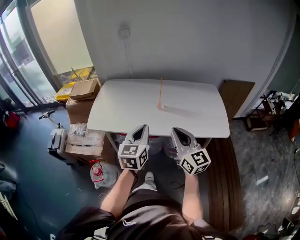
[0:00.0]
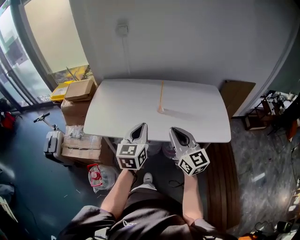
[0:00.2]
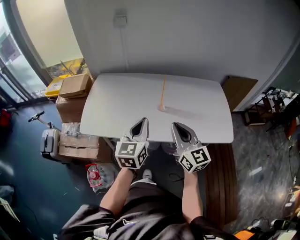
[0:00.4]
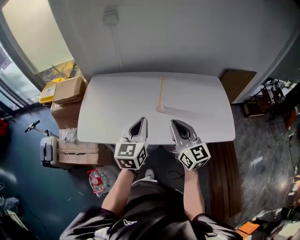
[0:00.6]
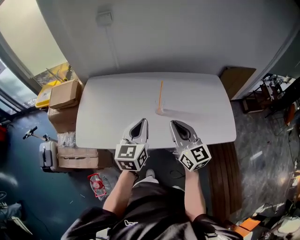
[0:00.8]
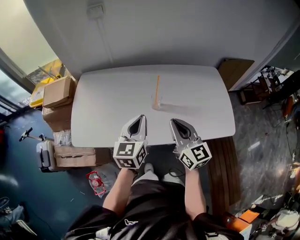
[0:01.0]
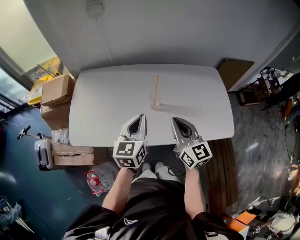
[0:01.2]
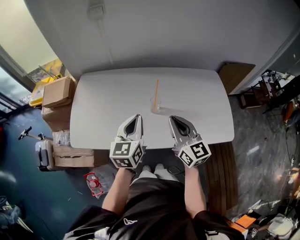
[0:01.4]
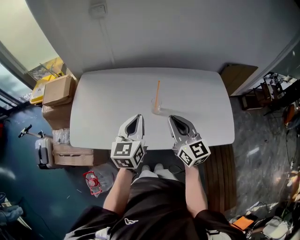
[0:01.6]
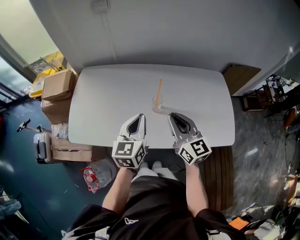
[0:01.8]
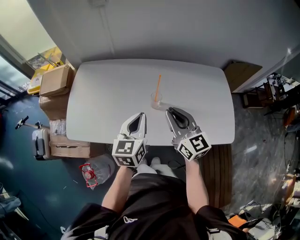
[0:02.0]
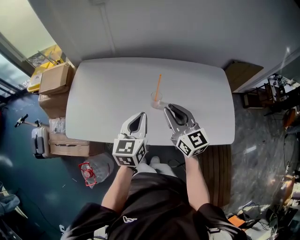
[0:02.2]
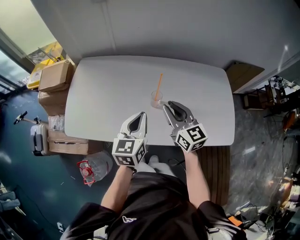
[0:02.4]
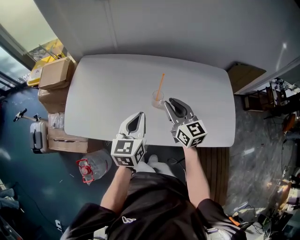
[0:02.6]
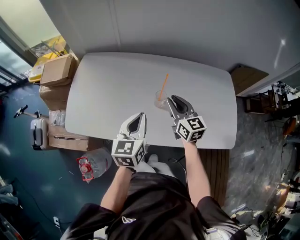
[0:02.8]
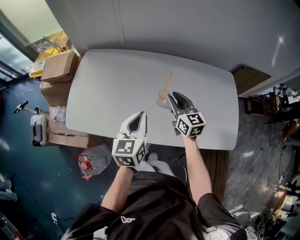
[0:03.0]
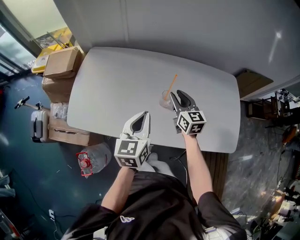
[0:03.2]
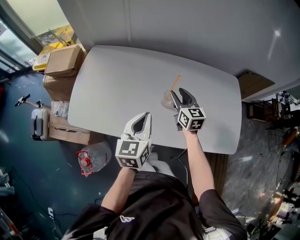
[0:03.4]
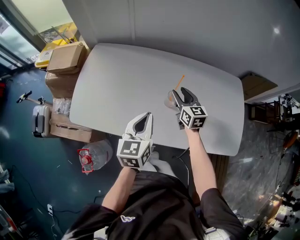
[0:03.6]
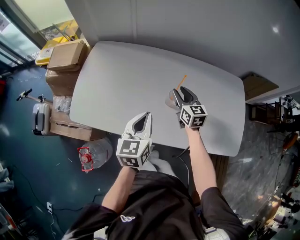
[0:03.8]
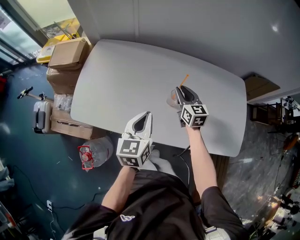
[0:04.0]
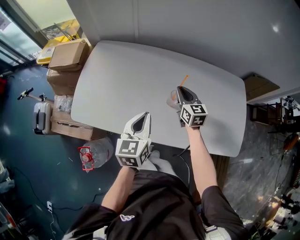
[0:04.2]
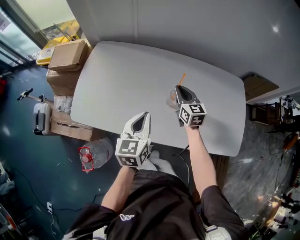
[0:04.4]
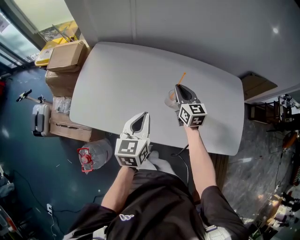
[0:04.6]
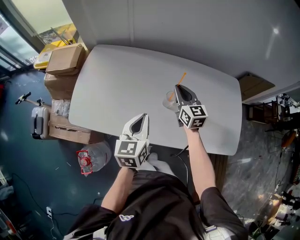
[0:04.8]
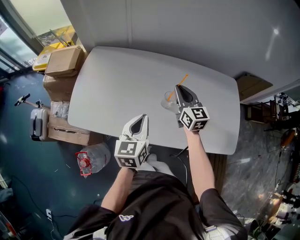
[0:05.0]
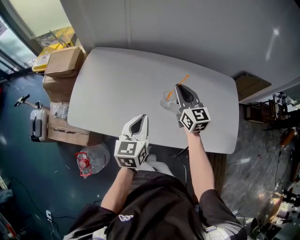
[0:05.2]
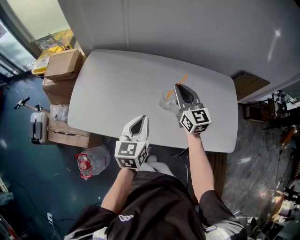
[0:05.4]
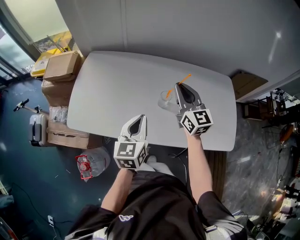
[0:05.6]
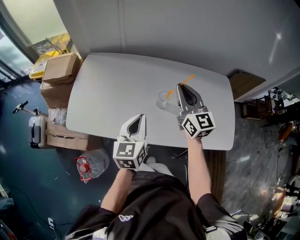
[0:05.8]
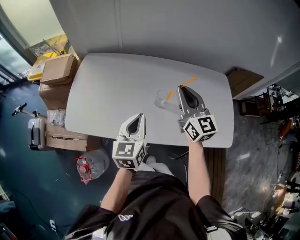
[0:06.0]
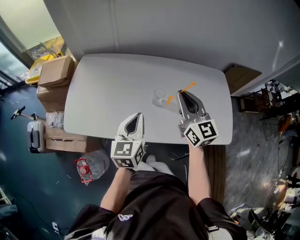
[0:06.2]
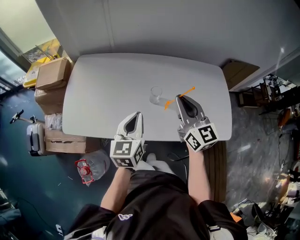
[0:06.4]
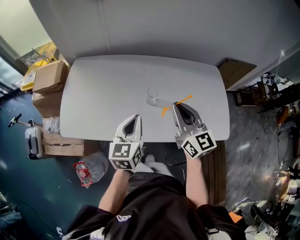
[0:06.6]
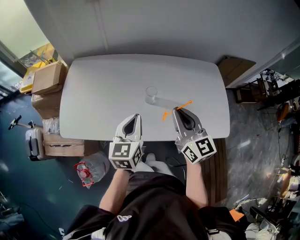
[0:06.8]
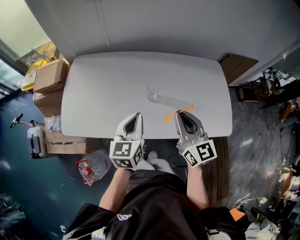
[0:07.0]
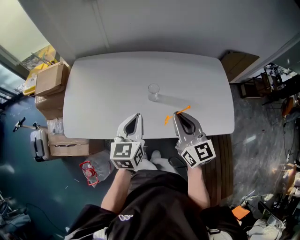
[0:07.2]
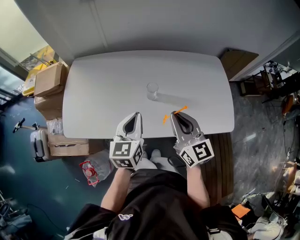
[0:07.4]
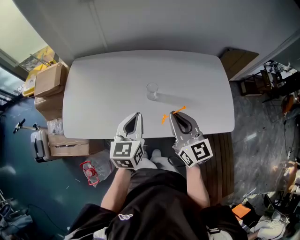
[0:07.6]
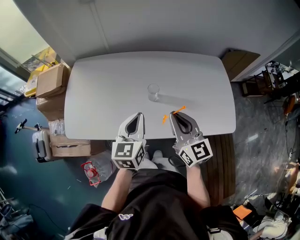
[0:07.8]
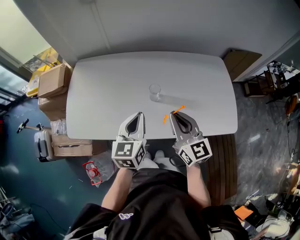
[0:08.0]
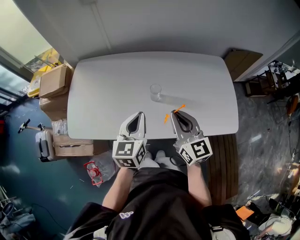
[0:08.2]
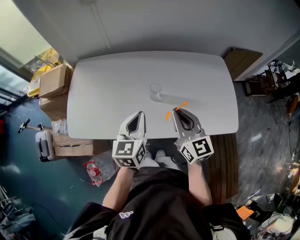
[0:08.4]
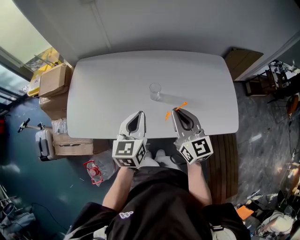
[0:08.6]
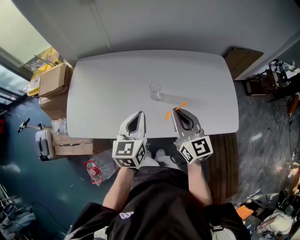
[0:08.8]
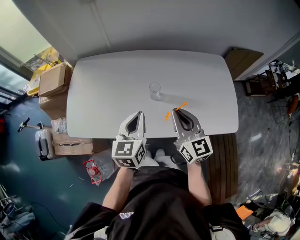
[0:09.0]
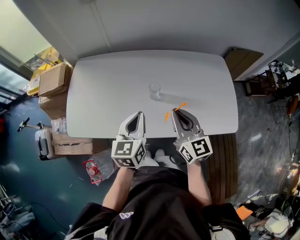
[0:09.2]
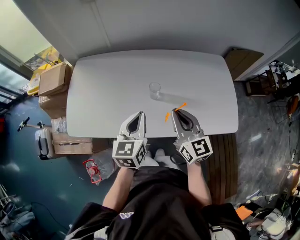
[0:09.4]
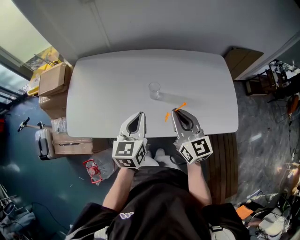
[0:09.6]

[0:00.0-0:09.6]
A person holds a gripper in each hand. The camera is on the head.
0.0 to 1.6 s: Both grippers travel together forward, about 25 cm.
1.6 to 3.2 s: The right gripper heads forward and downward, covering some 20 cm, and opens up.
3.2 to 4.8 s: The right gripper closes up.
4.8 to 6.4 s: The right gripper heads backward and upward, covering roughly 20 cm.
6.4 to 8.0 s: The right gripper travels backward by some 5 cm.
8.0 to 9.6 s: The two grippers keep their place.

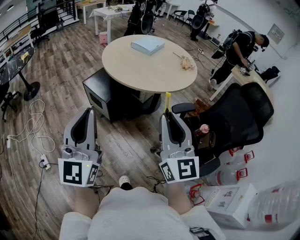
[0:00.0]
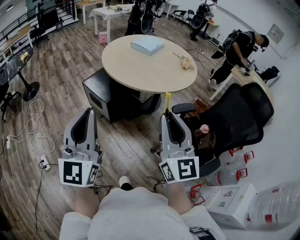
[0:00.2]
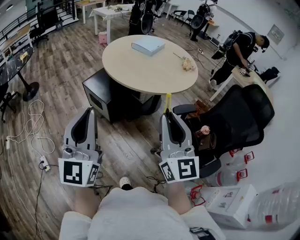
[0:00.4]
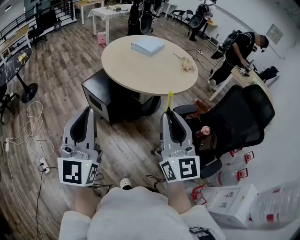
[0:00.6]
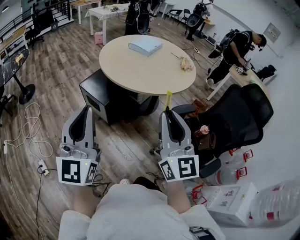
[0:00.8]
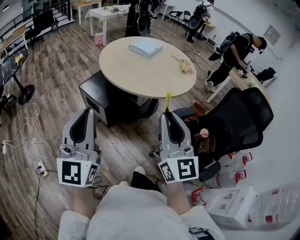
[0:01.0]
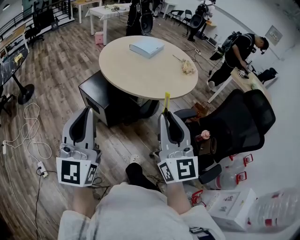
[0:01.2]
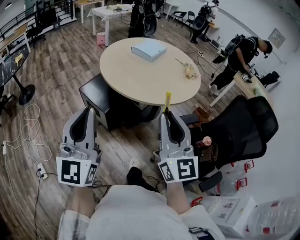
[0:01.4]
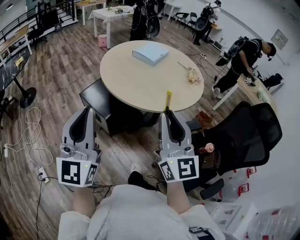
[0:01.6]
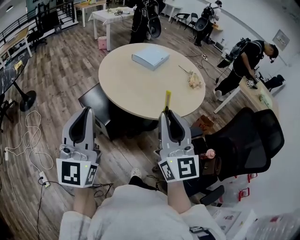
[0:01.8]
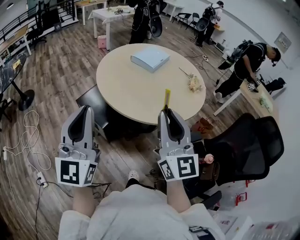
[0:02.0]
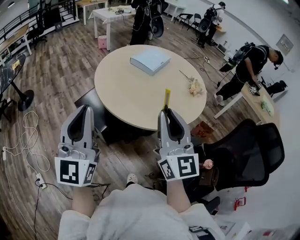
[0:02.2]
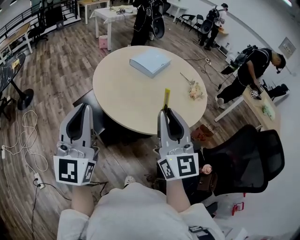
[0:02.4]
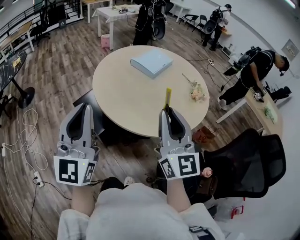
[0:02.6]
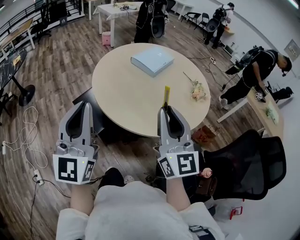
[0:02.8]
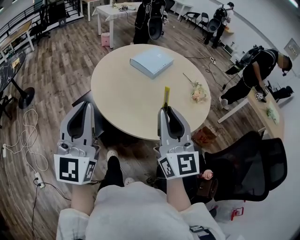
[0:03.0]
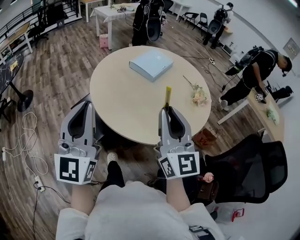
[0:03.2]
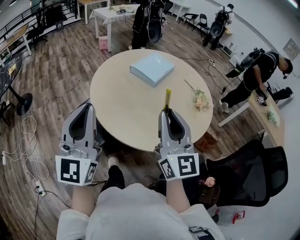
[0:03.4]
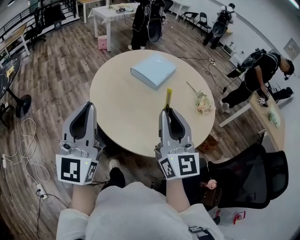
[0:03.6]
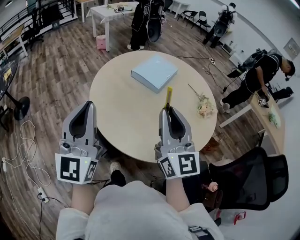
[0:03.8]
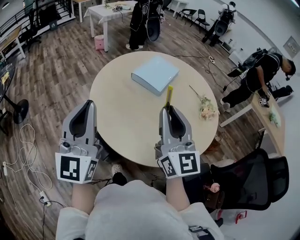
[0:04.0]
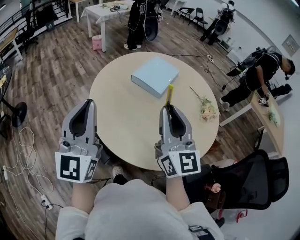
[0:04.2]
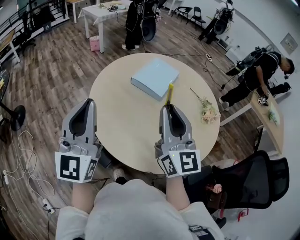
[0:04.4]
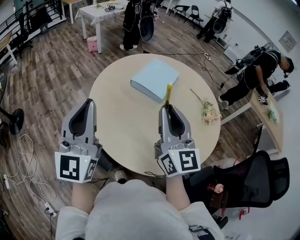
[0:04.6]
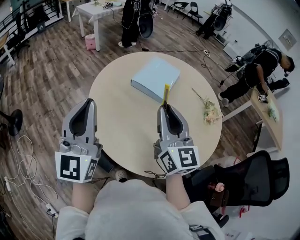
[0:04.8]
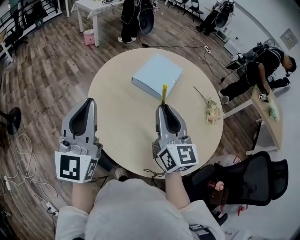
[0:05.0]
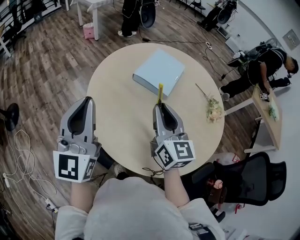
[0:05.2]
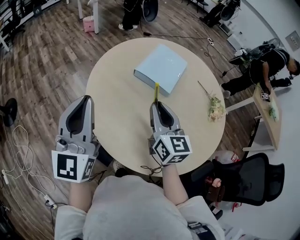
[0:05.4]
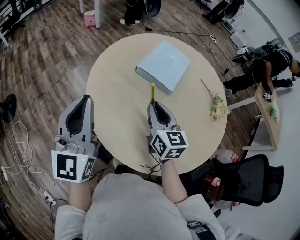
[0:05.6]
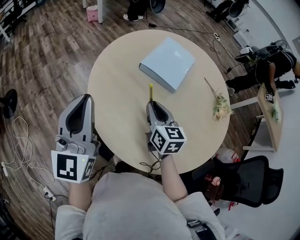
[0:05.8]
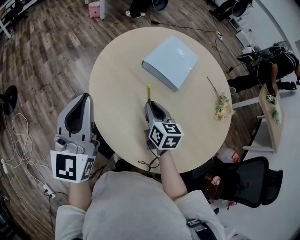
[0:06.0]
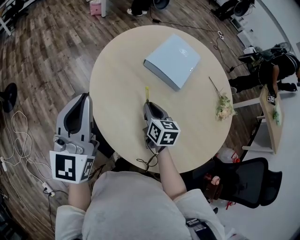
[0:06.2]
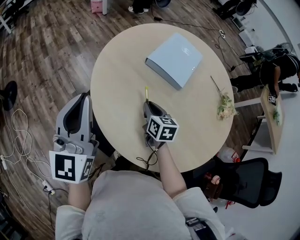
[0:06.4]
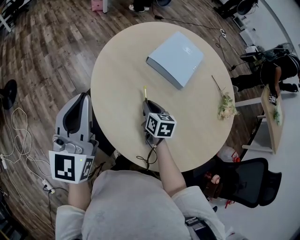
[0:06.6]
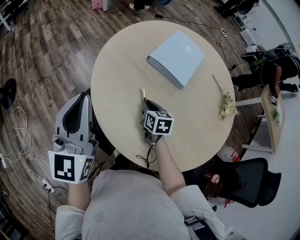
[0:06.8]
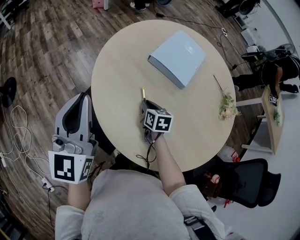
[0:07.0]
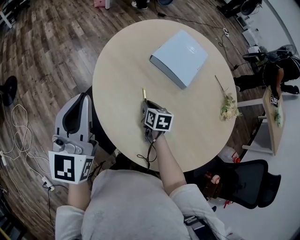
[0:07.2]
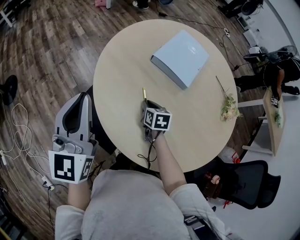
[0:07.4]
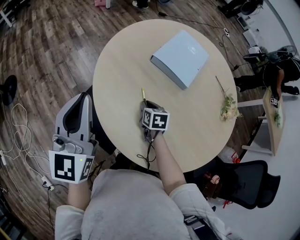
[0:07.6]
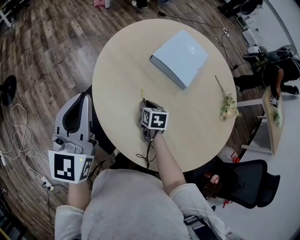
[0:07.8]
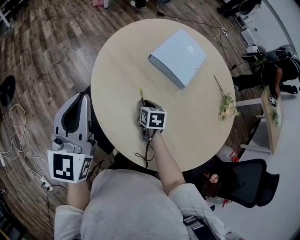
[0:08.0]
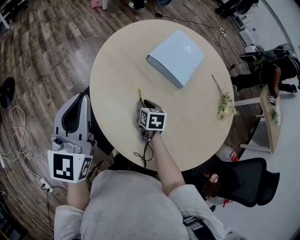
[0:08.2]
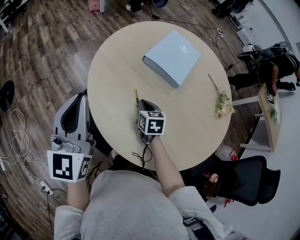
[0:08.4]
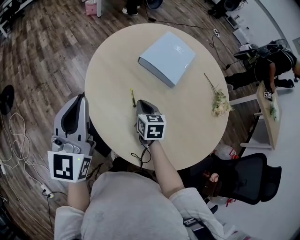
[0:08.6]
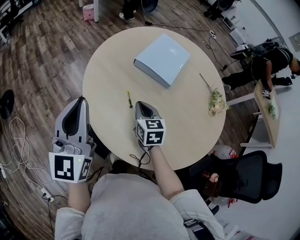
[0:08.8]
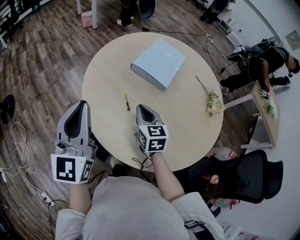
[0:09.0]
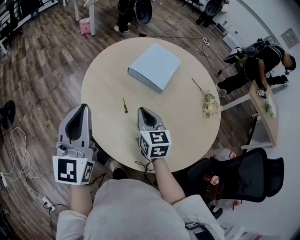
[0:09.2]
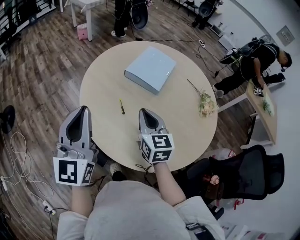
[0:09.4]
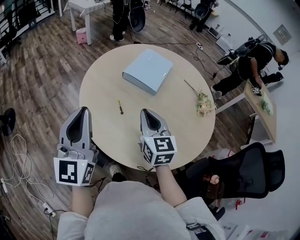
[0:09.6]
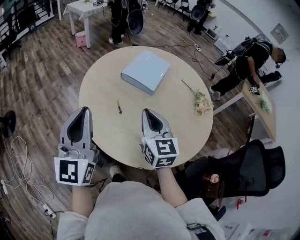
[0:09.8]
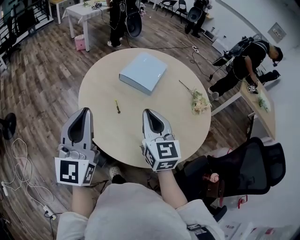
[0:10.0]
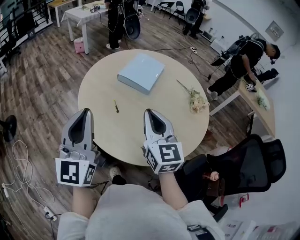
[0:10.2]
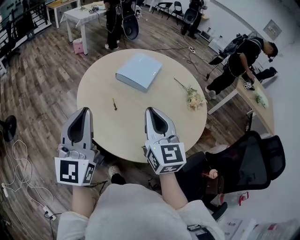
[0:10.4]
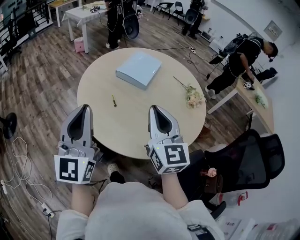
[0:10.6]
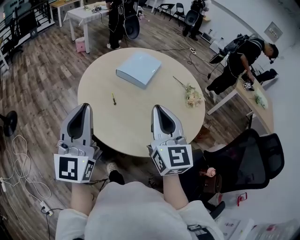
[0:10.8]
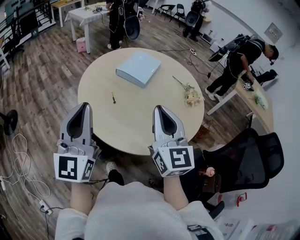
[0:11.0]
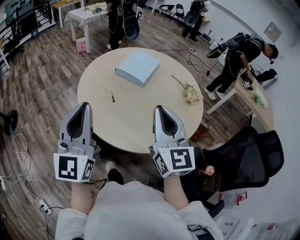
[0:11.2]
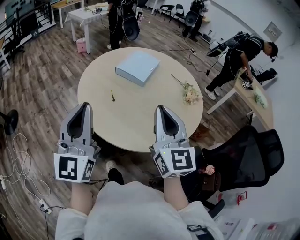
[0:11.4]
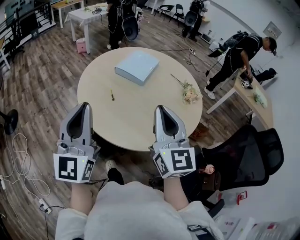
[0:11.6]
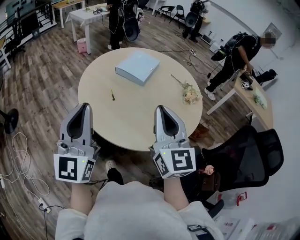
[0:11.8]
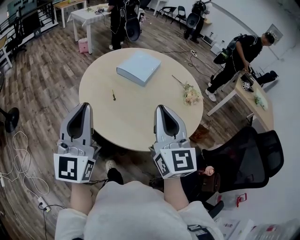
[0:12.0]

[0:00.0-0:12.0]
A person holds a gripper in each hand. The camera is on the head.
0.0 to 1.6 s: The grippers both shift forward by some 20 cm.
1.6 to 3.0 s: The grippers both shift forward by roughly 25 cm.
3.0 to 4.4 s: Both grippers travel together forward, approximately 25 cm.
4.4 to 6.0 s: The left gripper travels forward, downward and to the left by roughly 20 cm. Meanwhile the right gripper moves downward and forward, some 30 cm, and angles its fingers downward, by roughly 40 degrees.
6.0 to 7.6 s: The left gripper ends up approximately 5 cm from where it was; the right gripper goes about 15 cm downward, and turns by roughly 20 degrees.
7.6 to 9.0 s: The left gripper shifts some 10 cm backward and to the right; the right gripper goes about 15 cm upward, and rotates about 30 degrees.
9.0 to 10.4 s: The left gripper moves backward, to the right and upward, approximately 15 cm; the right gripper is displaced upward, backward and to the right by about 30 cm, and rotates approximately 30 degrees.
10.4 to 12.0 s: The right gripper travels backward, upward and to the right by some 15 cm. Meanwhile the left gripper goes approximately 10 cm backward.

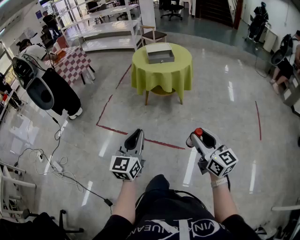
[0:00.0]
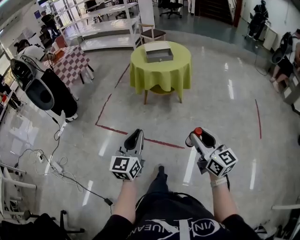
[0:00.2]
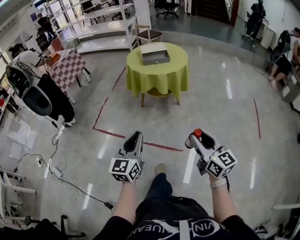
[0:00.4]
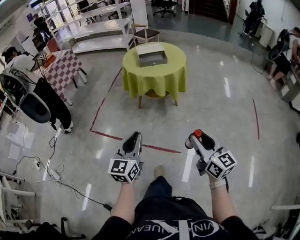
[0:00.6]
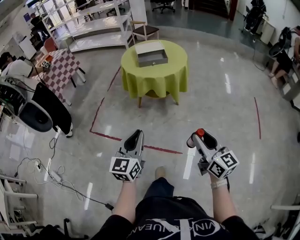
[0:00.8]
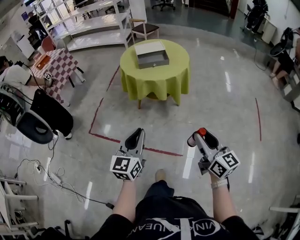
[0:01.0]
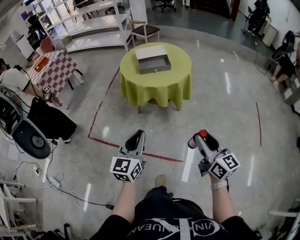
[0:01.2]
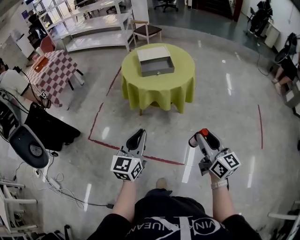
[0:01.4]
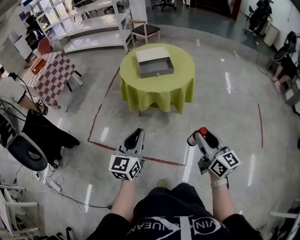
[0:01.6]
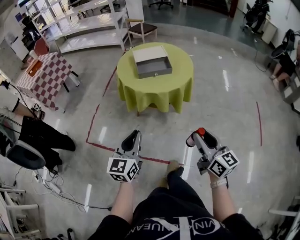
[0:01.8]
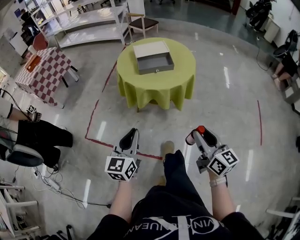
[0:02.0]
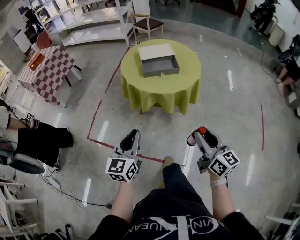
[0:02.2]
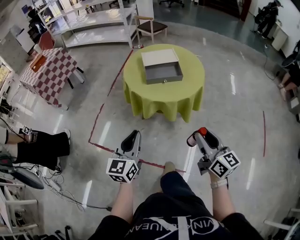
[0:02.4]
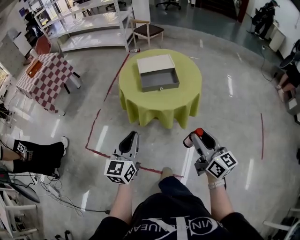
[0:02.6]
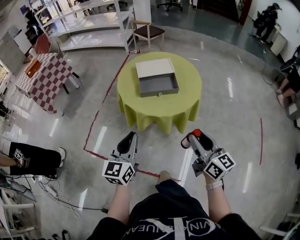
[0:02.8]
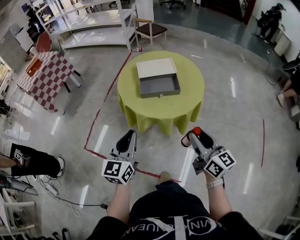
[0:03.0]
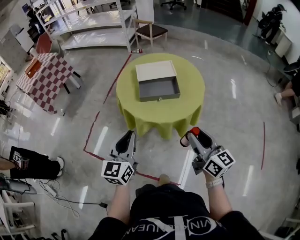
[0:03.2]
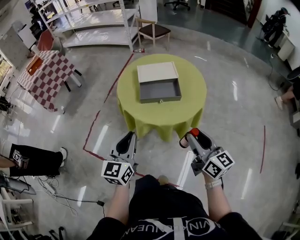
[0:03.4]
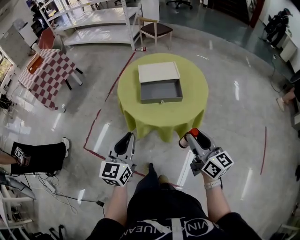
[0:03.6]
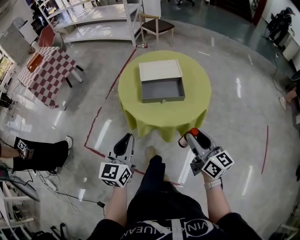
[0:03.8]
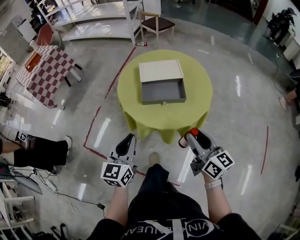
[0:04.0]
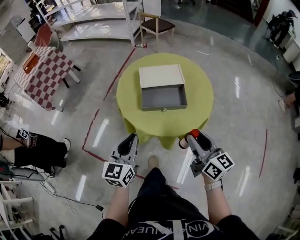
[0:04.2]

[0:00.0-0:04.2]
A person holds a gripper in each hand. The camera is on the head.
0.0 to 1.4 s: Both grippers move forward, roughly 30 cm.
1.4 to 2.8 s: The grippers both shift forward by some 20 cm.
2.8 to 4.2 s: The grippers both shift forward by approximately 15 cm.
